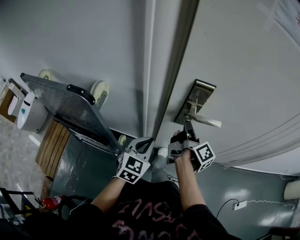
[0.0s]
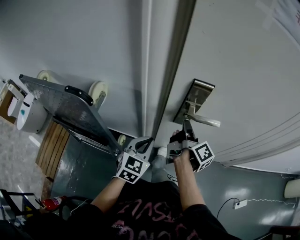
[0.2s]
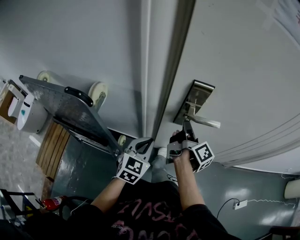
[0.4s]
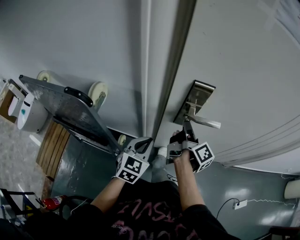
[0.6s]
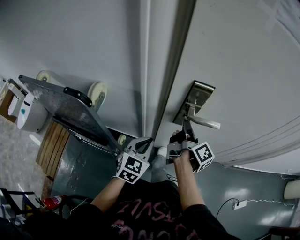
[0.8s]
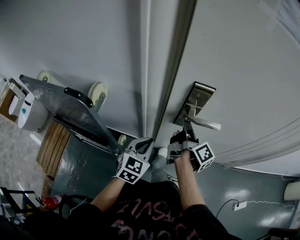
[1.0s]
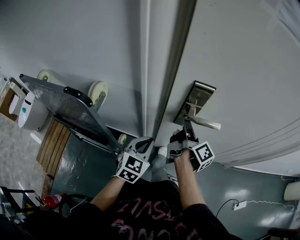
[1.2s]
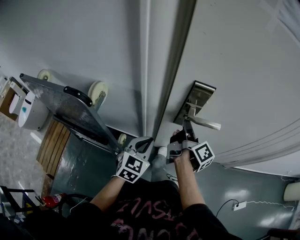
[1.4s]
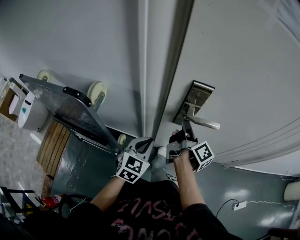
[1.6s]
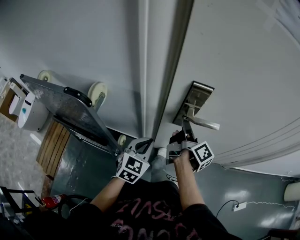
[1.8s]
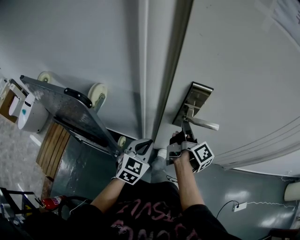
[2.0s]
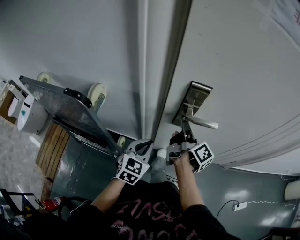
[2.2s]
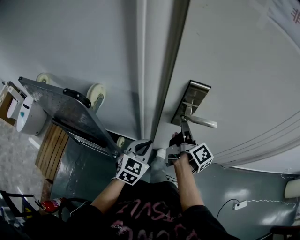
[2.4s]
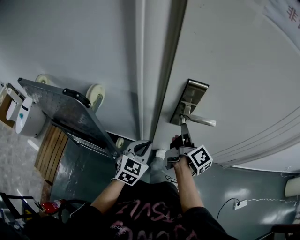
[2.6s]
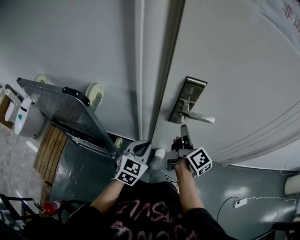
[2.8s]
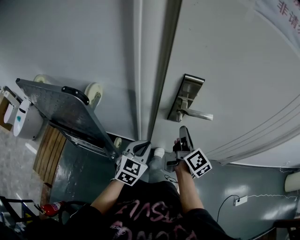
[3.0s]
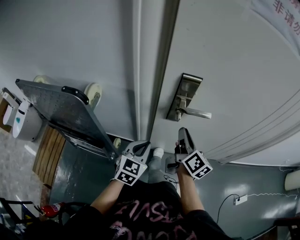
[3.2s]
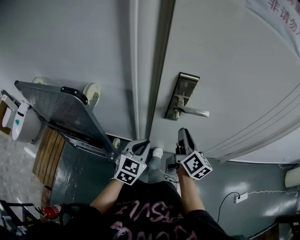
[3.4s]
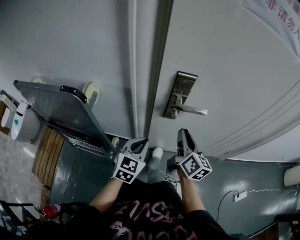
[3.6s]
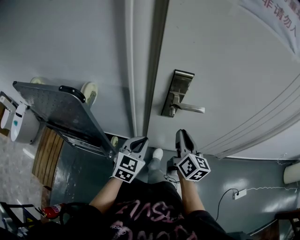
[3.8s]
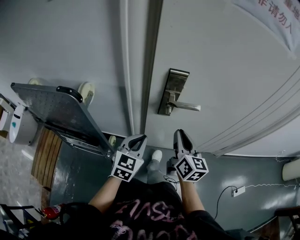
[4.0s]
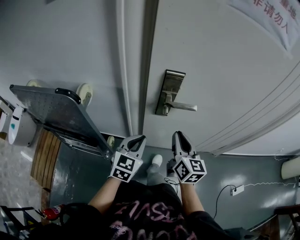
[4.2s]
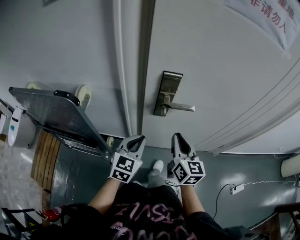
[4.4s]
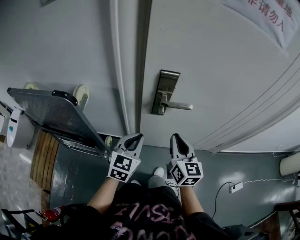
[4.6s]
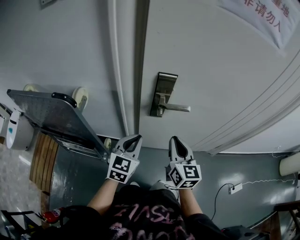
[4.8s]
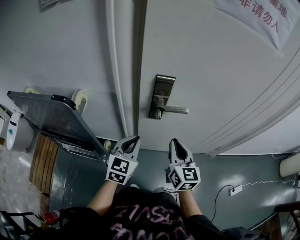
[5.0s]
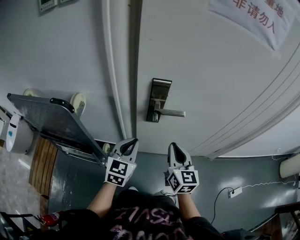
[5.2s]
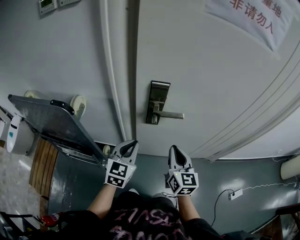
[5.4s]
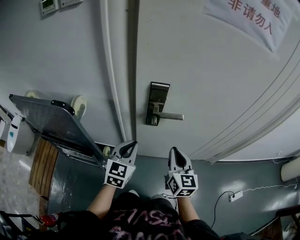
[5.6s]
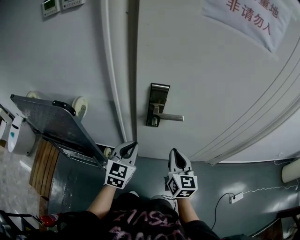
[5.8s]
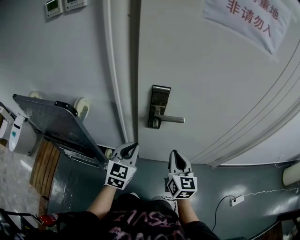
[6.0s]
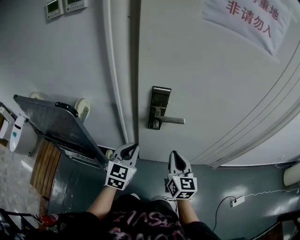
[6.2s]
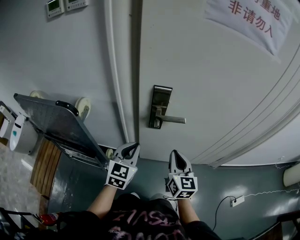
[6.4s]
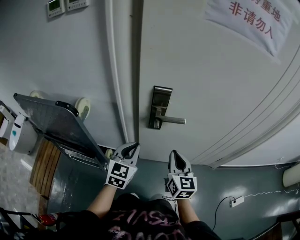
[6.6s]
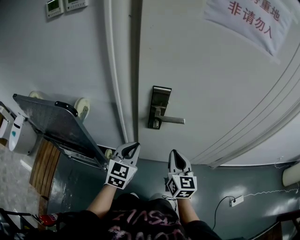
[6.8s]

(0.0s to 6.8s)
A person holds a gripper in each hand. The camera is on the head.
0.0s - 1.4s: Neither gripper changes place.
1.4s - 2.8s: The grippers stay close to where they were, moving slightly.
2.8s - 4.0s: The right gripper travels backward by approximately 5 cm, and twists approximately 40 degrees counterclockwise, seen from behind.
4.0s - 5.4s: The right gripper ends up roughly 5 cm from where it was.
5.4s - 6.8s: The two grippers keep their place.

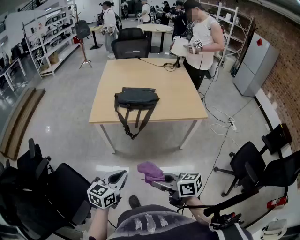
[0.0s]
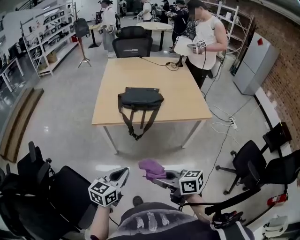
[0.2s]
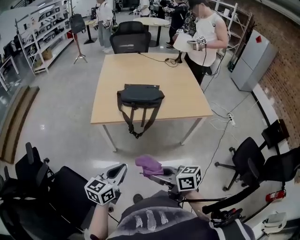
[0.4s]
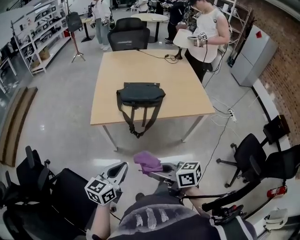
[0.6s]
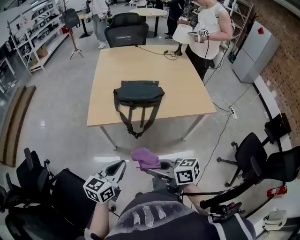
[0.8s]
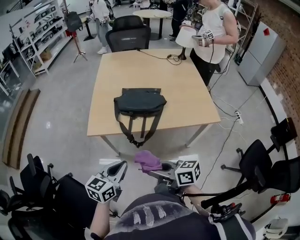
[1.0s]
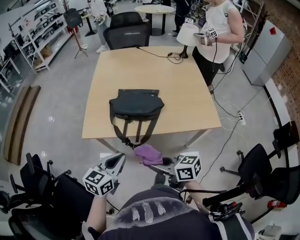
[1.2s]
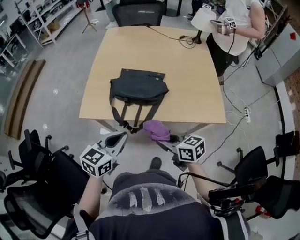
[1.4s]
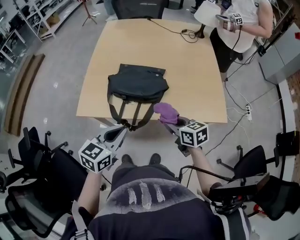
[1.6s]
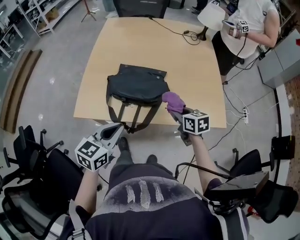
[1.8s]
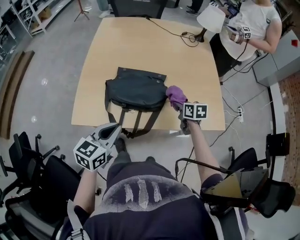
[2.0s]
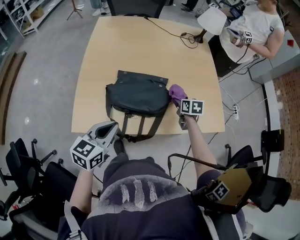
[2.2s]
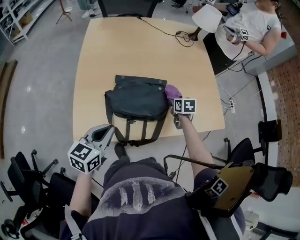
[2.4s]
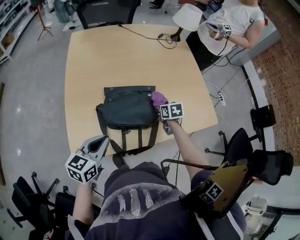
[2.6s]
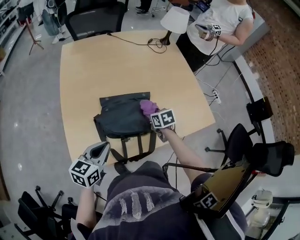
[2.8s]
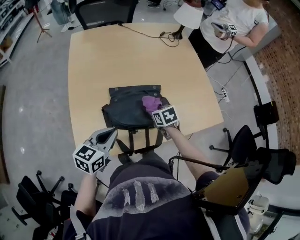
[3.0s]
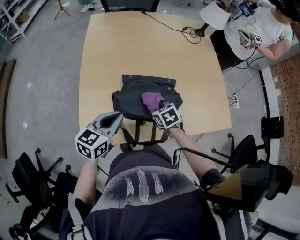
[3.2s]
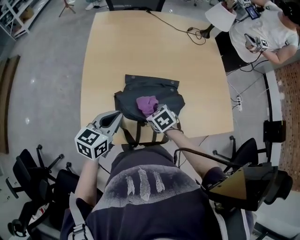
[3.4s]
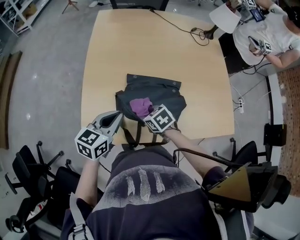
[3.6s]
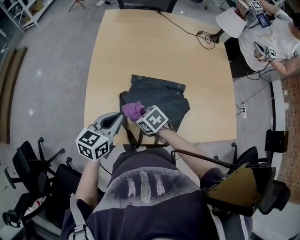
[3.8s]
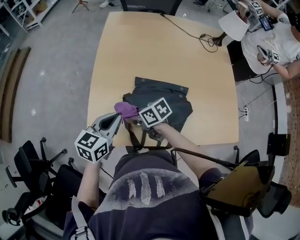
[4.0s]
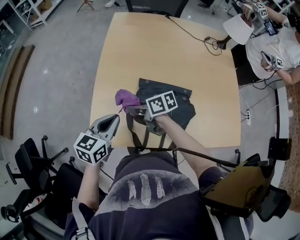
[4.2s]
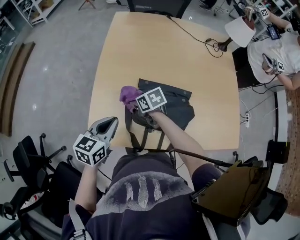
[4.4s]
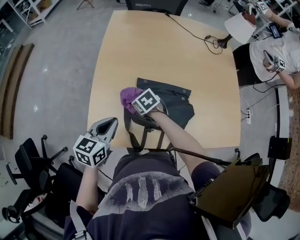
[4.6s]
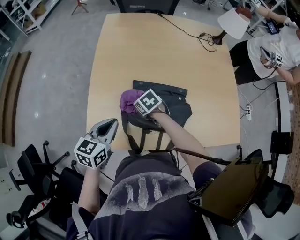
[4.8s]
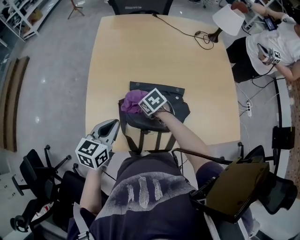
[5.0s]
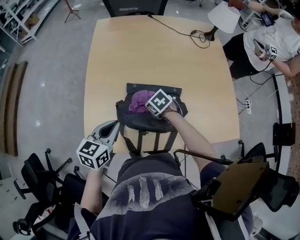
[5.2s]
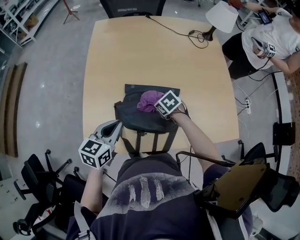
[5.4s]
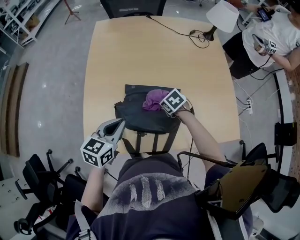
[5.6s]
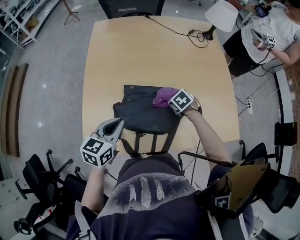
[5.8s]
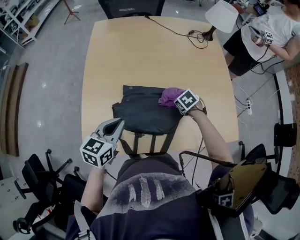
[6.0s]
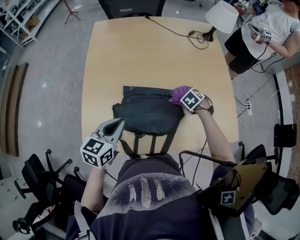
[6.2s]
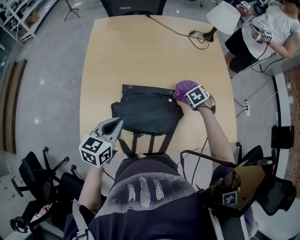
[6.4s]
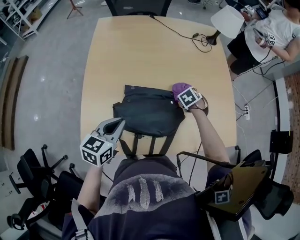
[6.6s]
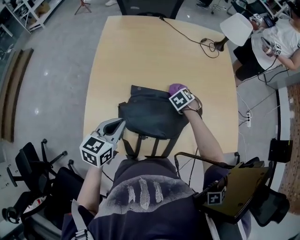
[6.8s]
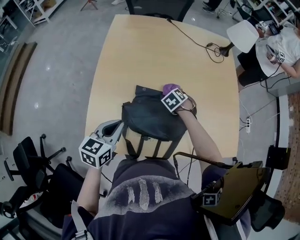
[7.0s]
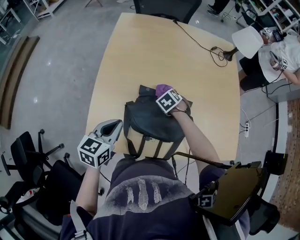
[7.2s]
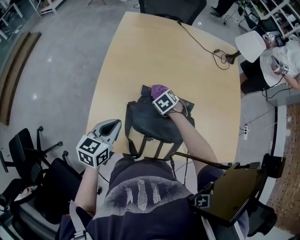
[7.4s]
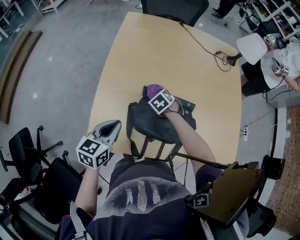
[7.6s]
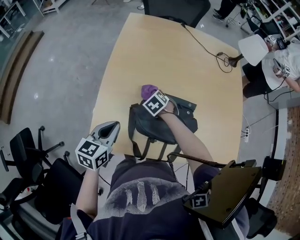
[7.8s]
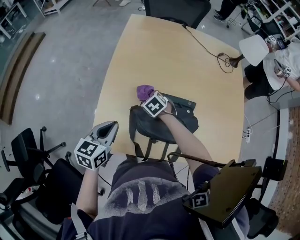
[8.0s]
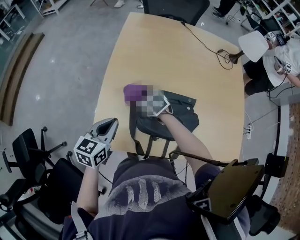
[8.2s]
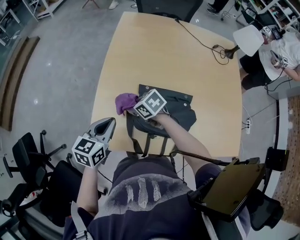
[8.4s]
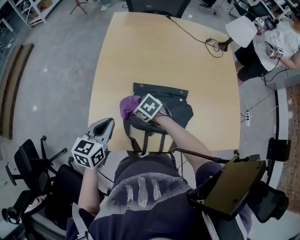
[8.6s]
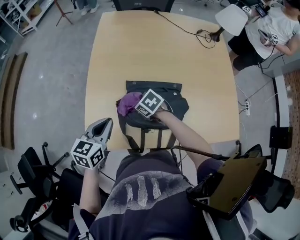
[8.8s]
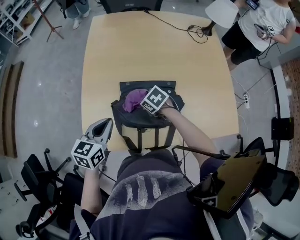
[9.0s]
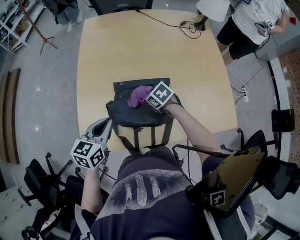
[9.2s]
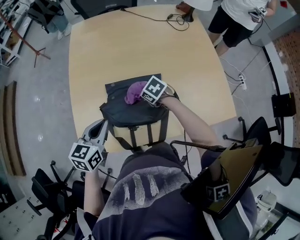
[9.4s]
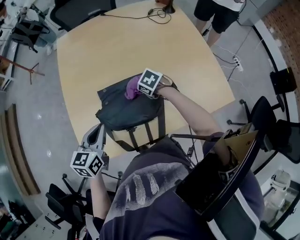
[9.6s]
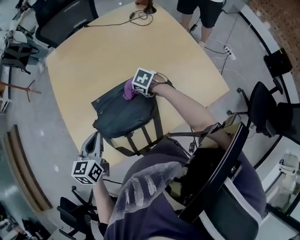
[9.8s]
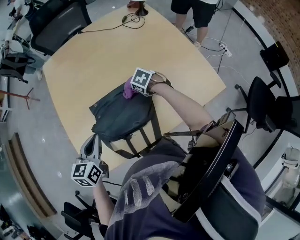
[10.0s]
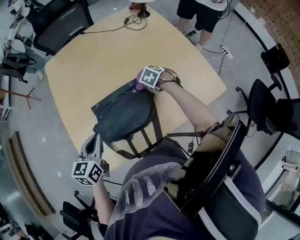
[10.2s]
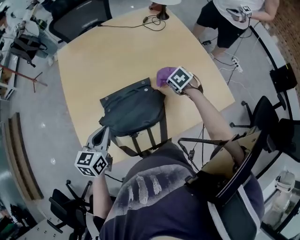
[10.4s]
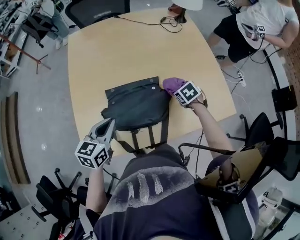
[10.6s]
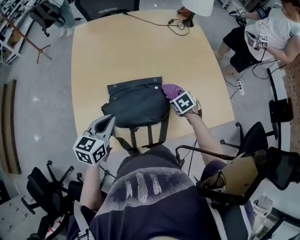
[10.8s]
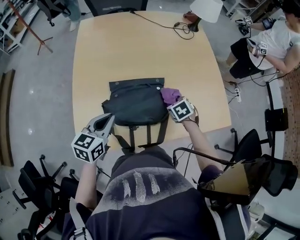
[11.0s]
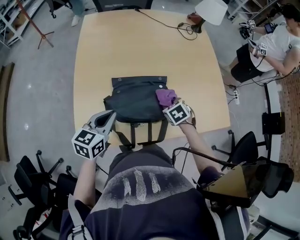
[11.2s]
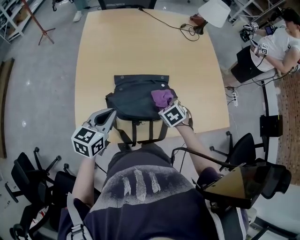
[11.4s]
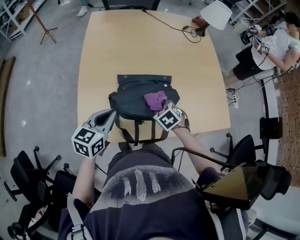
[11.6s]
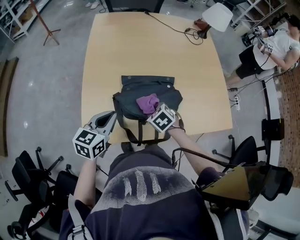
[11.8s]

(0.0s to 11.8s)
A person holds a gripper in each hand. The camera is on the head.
0.0s - 1.4s: Both grippers move forward, some 30 cm.
1.4s - 3.0s: The left gripper shifts by about 25 cm. Meanwhile the right gripper shifts by roughly 35 cm, and points its fingers approximately 30 degrees further downward.
3.0s - 4.4s: The right gripper moves approximately 25 cm, and changes its angle by about 30 degrees; the left gripper ends up roughly 10 cm from where it was, and changes its angle by about 20 degrees.
4.4s - 6.0s: The left gripper ends up approximately 10 cm from where it was; the right gripper ends up some 30 cm from where it was, and swivels some 30 degrees.
6.0s - 7.4s: The right gripper moves roughly 20 cm. Meanwhile the left gripper shifts by approximately 10 cm.
7.4s - 8.8s: The right gripper turns by roughly 30 degrees.
8.8s - 10.4s: The left gripper moves approximately 10 cm; the right gripper ends up about 35 cm from where it was, and turns by about 40 degrees.
10.4s - 11.8s: The right gripper moves to the left and backward, some 30 cm, and changes its angle by approximately 30 degrees. The left gripper shifts about 10 cm to the left and backward.

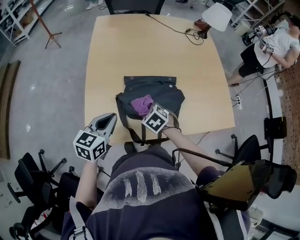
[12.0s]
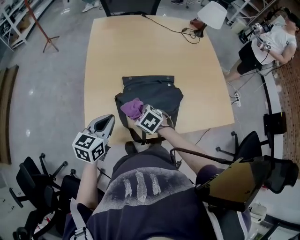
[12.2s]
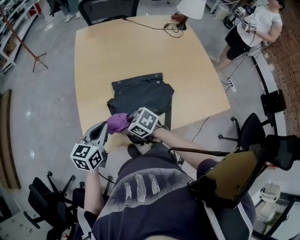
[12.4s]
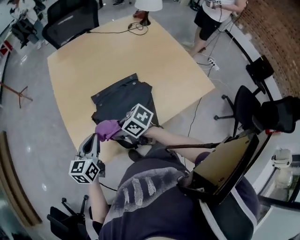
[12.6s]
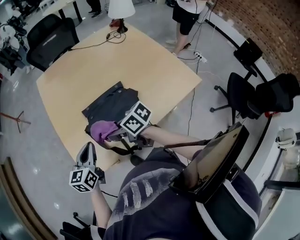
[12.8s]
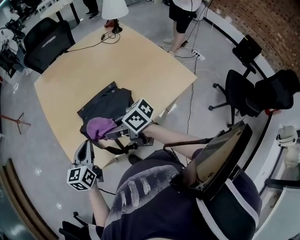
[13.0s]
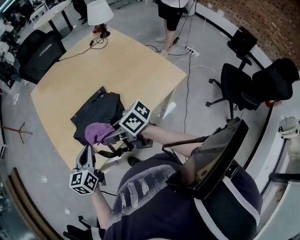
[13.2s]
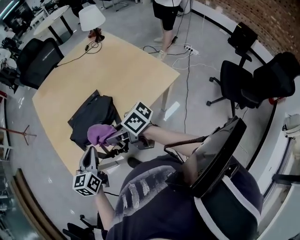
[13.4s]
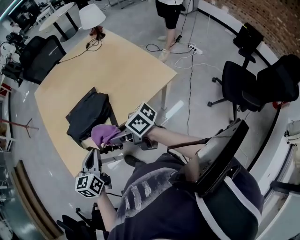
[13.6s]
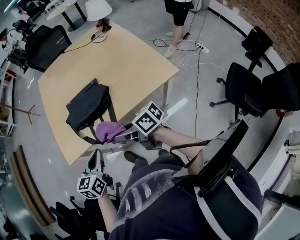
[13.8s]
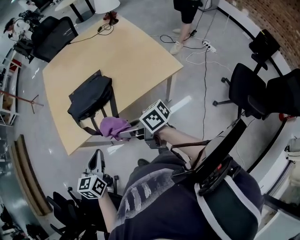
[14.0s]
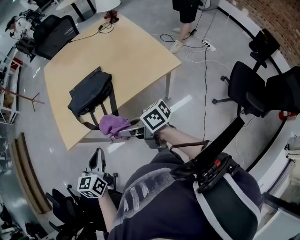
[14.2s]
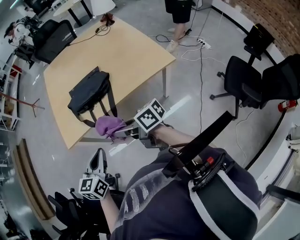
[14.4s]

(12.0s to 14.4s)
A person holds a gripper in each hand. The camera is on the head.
12.0s - 13.2s: The right gripper travels upward and backward by approximately 20 cm, and tips its fingers upward by some 50 degrees, while the left gripper goes approximately 10 cm to the right and backward.
13.2s - 14.4s: The two grippers go approximately 30 cm backward.

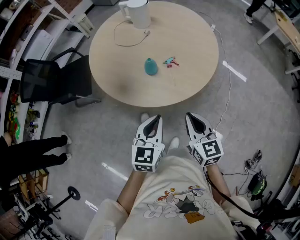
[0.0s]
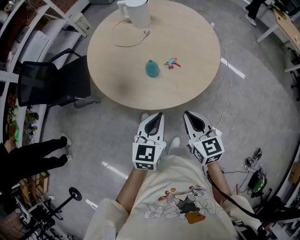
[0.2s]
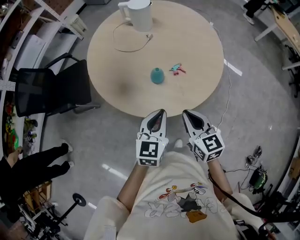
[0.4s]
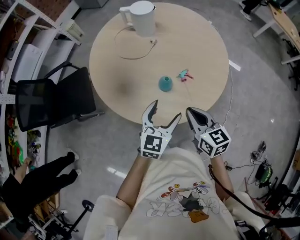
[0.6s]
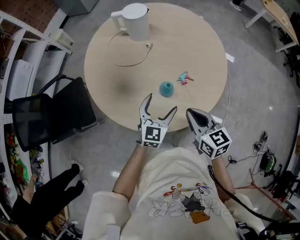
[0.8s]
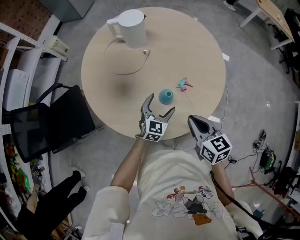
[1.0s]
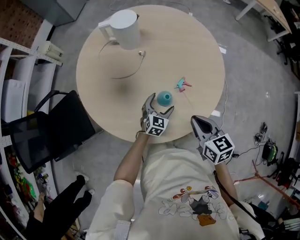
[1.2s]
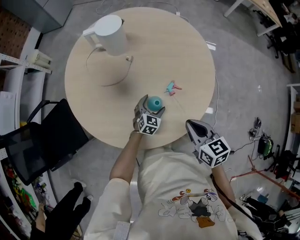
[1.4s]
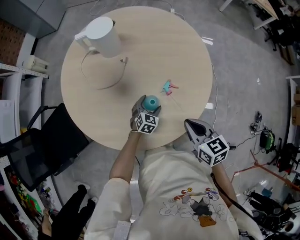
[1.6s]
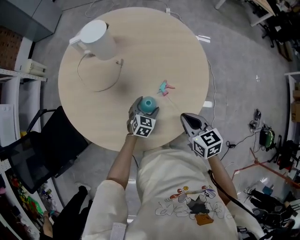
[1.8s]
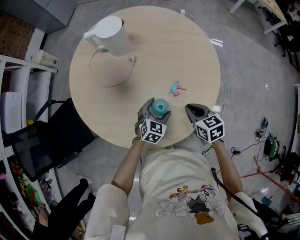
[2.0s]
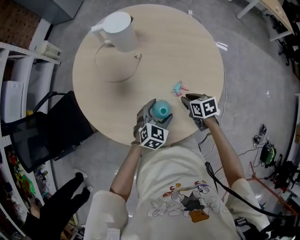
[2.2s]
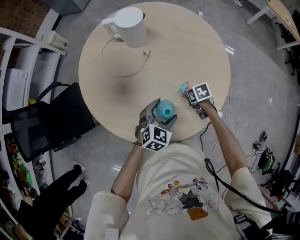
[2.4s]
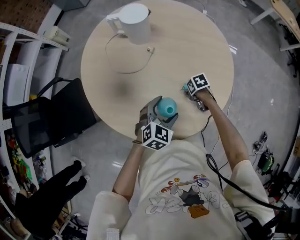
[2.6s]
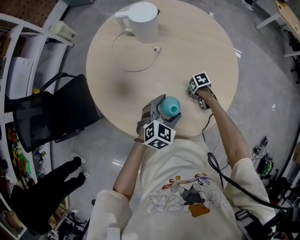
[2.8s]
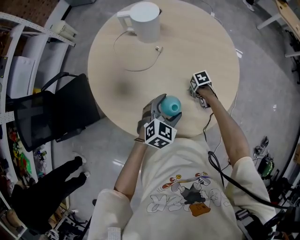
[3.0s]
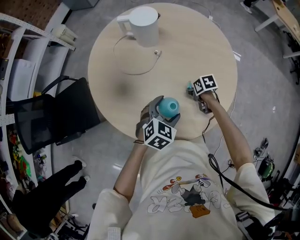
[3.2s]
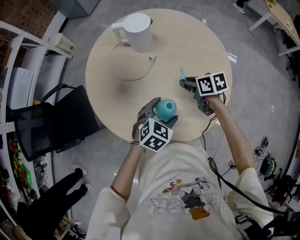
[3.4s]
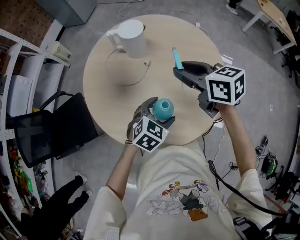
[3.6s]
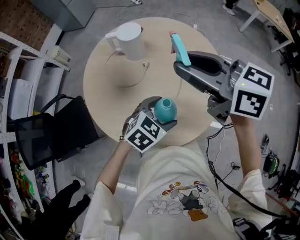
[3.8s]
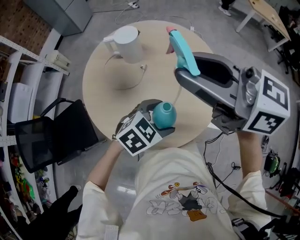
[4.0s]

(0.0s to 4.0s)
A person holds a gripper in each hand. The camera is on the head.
0.0s - 1.4s: The right gripper moves forward and to the left, roughly 25 cm, and changes its angle by about 20 degrees. The left gripper travels forward and downward by about 50 cm, swivels about 40 degrees, and opens.
1.4s - 2.6s: The right gripper goes about 25 cm downward, tips its fingers downward by roughly 40 degrees, and opens, while the left gripper shifts roughly 15 cm upward.
2.6s - 4.0s: The left gripper is displaced upward by some 15 cm, and rotates roughly 30 degrees. The right gripper shifts some 60 cm upward, and tips its fingers upward by roughly 70 degrees.
